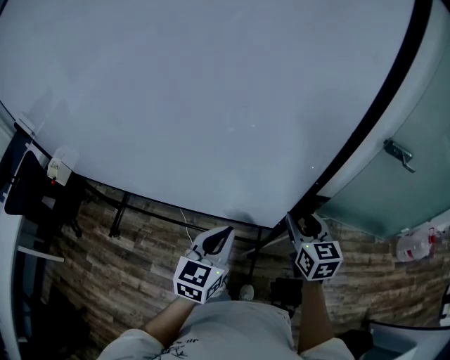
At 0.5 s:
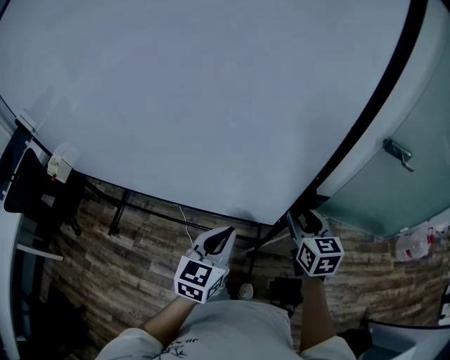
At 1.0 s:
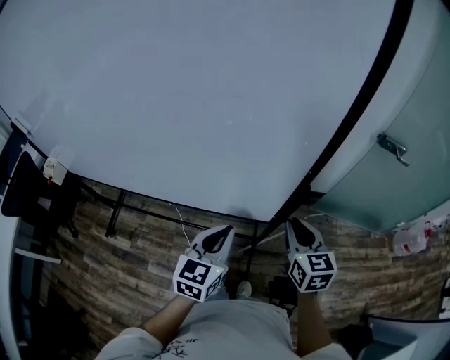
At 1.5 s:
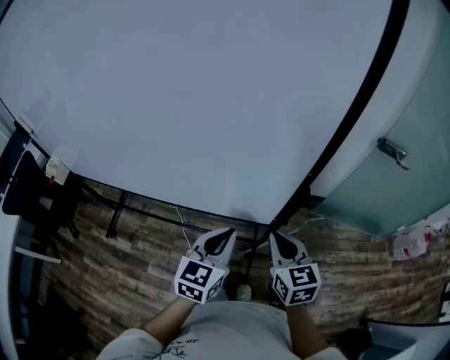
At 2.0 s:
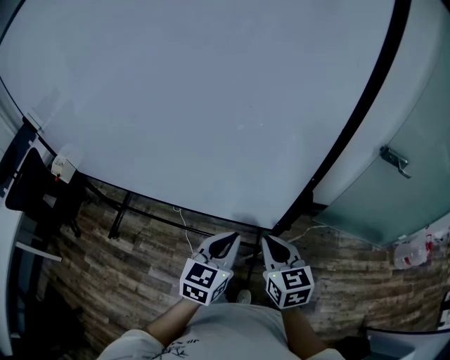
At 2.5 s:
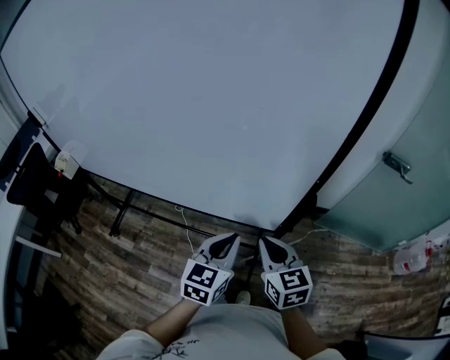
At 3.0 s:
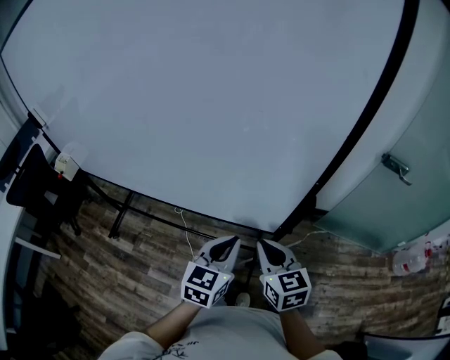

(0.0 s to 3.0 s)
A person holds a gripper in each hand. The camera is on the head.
0.0 s - 1.5 s: The right gripper shifts roughly 10 cm backward, and closes its fingers.
1.5 s - 3.0 s: The right gripper moves to the left, about 5 cm.

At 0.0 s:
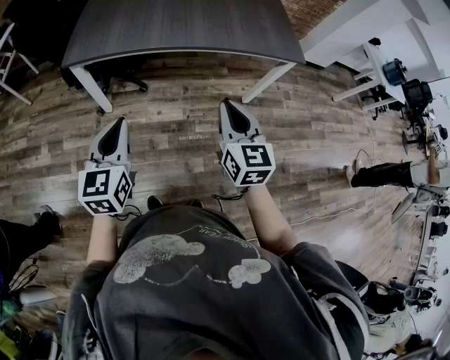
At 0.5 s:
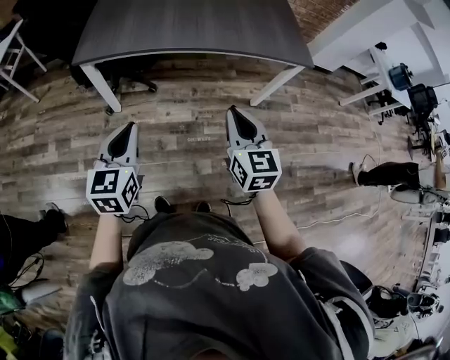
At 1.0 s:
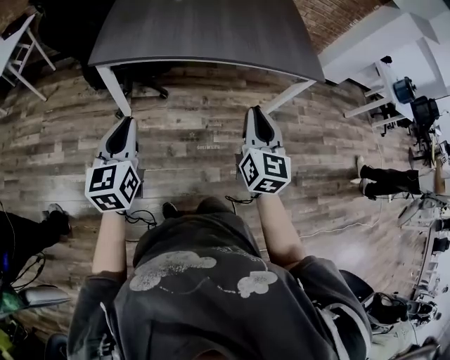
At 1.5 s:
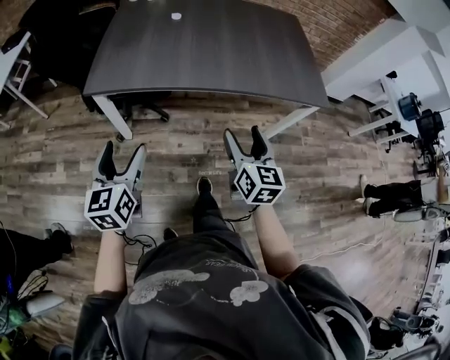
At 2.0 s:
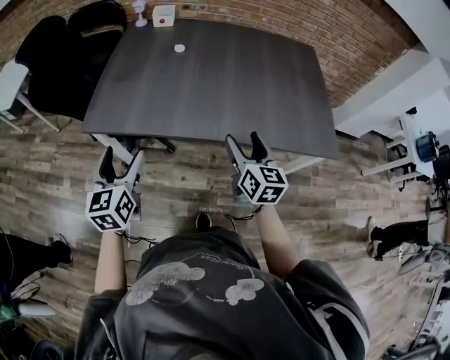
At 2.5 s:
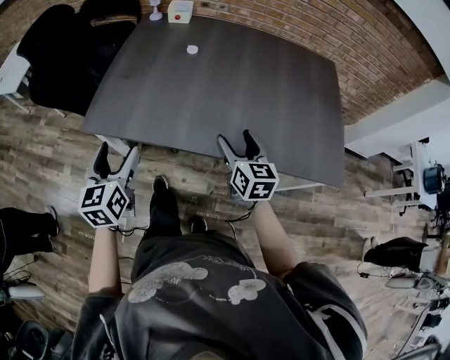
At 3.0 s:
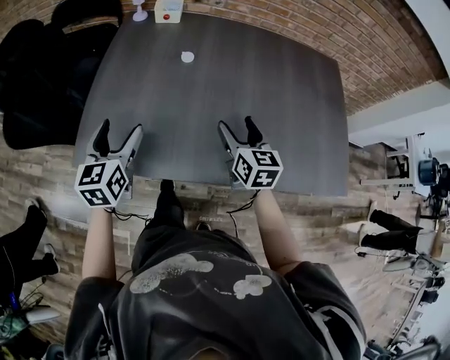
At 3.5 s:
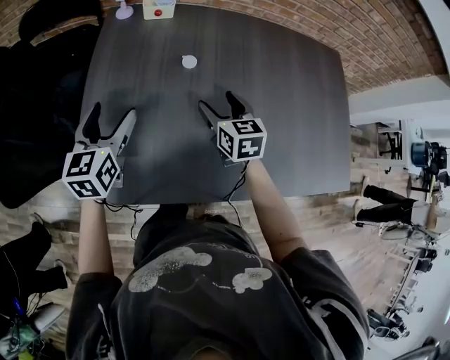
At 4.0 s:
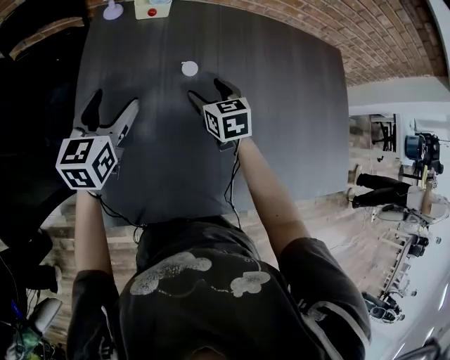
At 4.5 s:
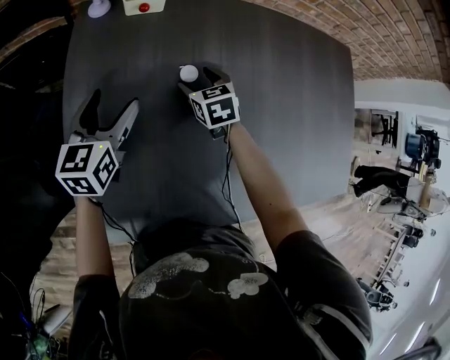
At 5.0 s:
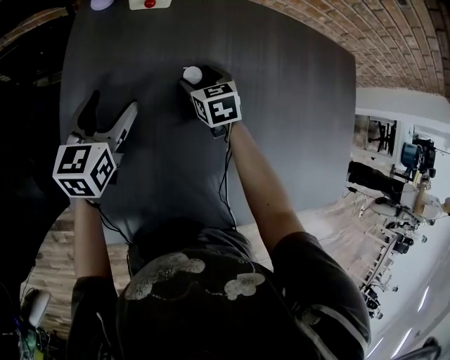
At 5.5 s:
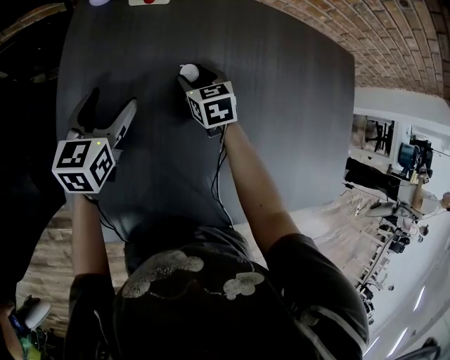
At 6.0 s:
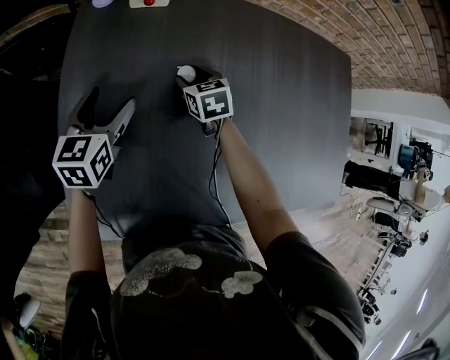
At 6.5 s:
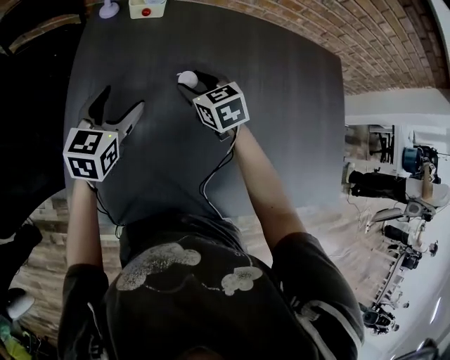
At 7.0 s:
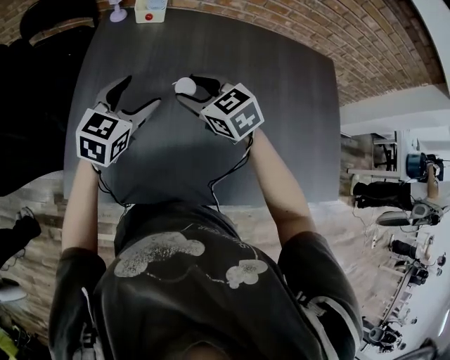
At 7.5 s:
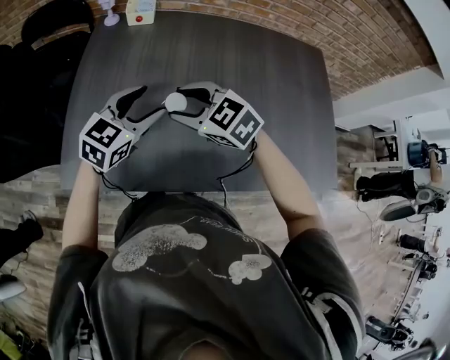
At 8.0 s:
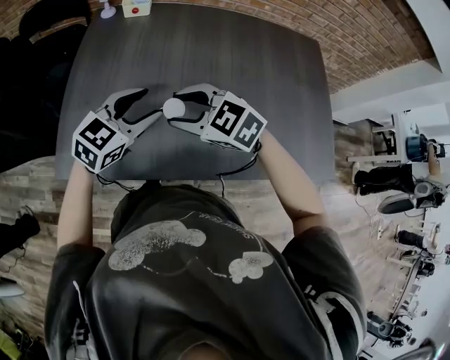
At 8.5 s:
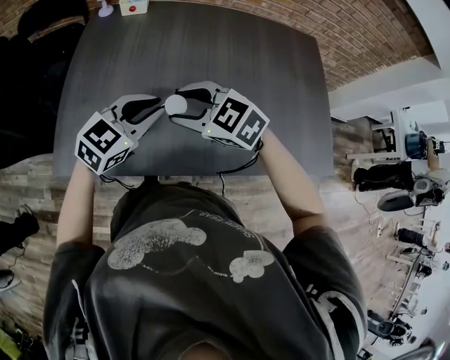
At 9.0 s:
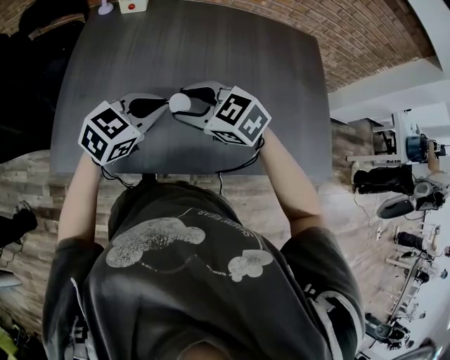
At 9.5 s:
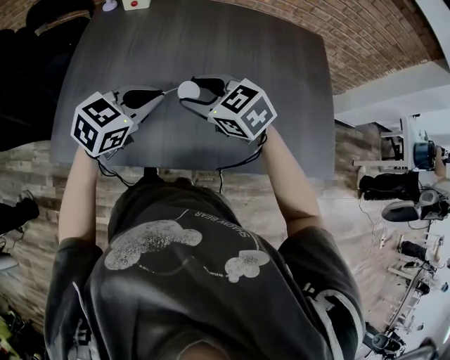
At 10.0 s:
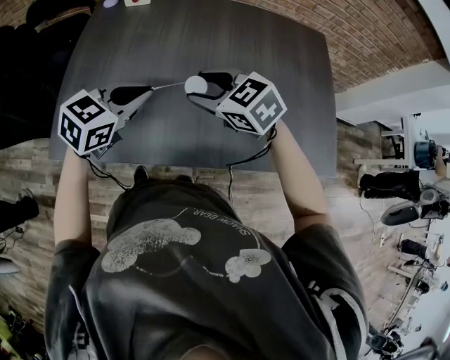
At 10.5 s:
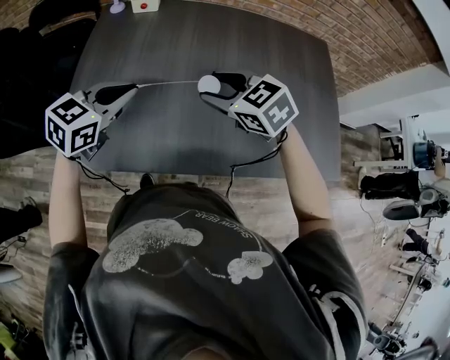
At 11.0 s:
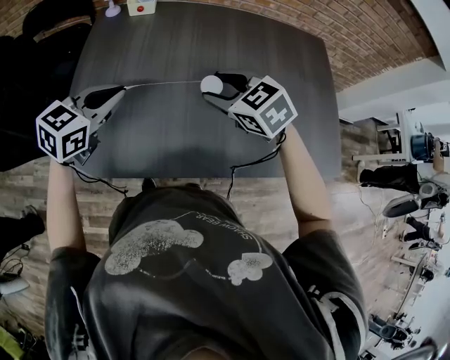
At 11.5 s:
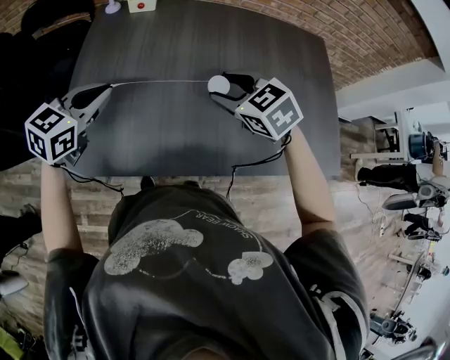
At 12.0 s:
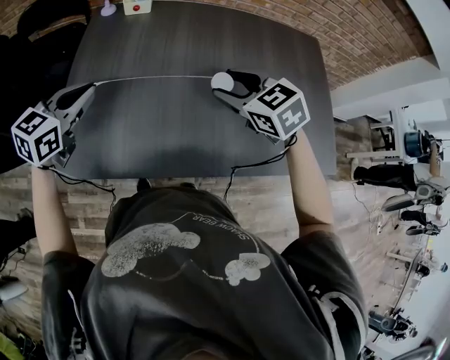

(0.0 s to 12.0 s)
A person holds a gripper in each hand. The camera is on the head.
0.0 s - 2.0 s: The grippers both shift forward by about 30 cm. The right gripper opens. Meanwhile the left gripper opens up.
2.0 s - 4.0 s: Both grippers are carried forward, about 50 cm. The right gripper turns by approximately 30 degrees, while the left gripper changes its angle by roughly 20 degrees.
4.0 s - 6.0 s: The right gripper travels forward and downward by roughly 10 cm. The left gripper goes approximately 10 cm downward and forward.
6.0 s - 8.0 s: The left gripper moves backward, to the right and upward, approximately 35 cm, turns by about 40 degrees, and closes; the right gripper travels backward and upward by roughly 40 cm, and turns by approximately 50 degrees.
8.0 s - 10.0 s: The left gripper closes up; the right gripper shifts some 10 cm to the right.
10.0 s - 12.0 s: The right gripper changes place by roughly 5 cm. Meanwhile the left gripper is displaced to the left by roughly 20 cm.

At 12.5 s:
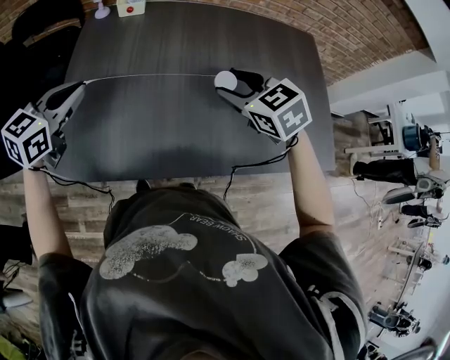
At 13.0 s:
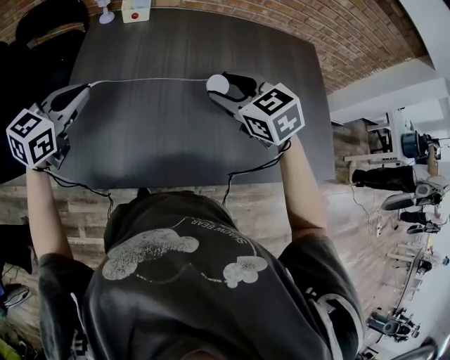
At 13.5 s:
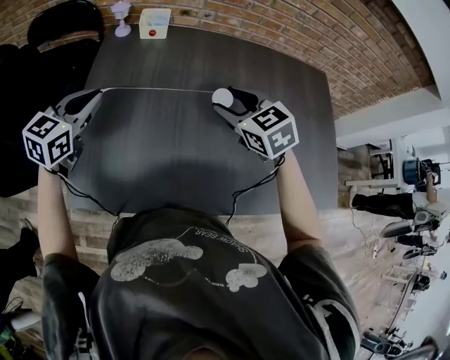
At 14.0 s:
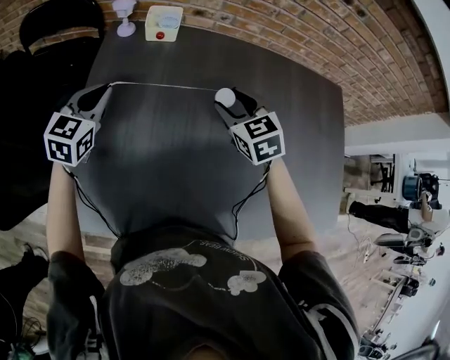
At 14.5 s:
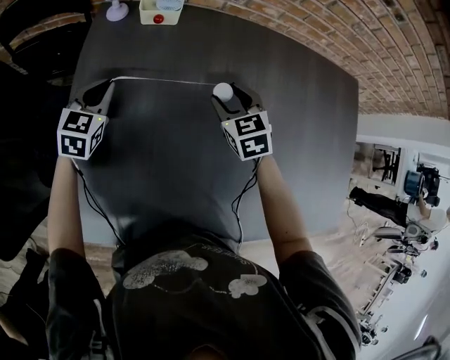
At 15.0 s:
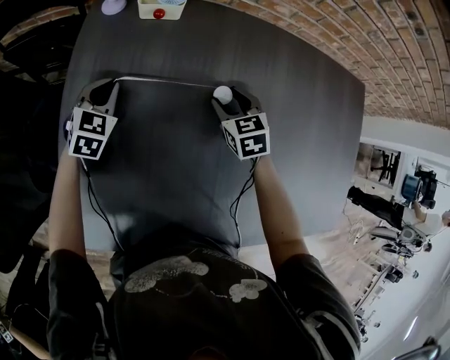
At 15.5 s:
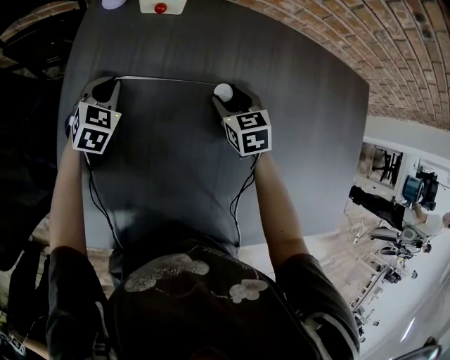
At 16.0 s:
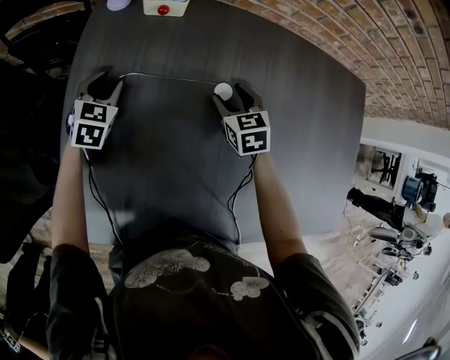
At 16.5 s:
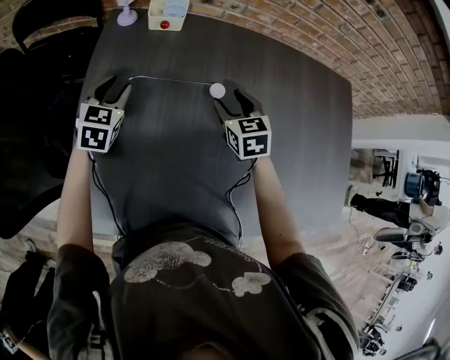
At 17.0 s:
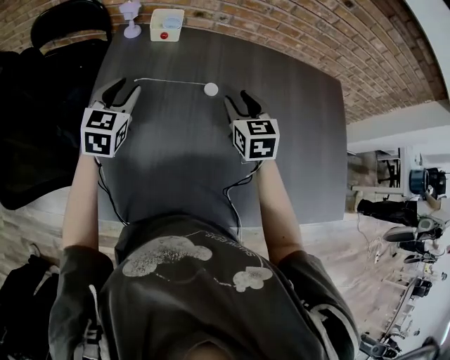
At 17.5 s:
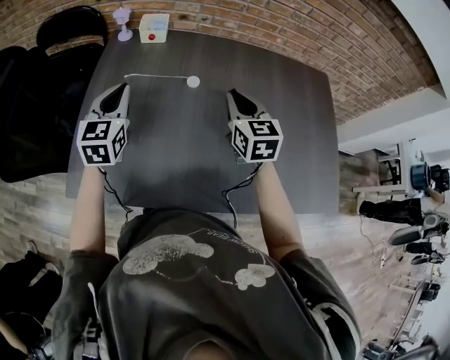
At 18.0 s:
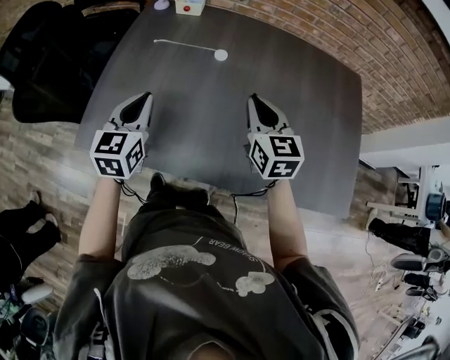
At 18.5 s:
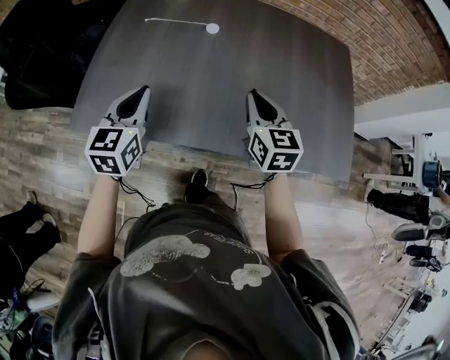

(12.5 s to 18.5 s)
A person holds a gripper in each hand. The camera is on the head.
12.5 s - 14.5 s: The grippers both shift forward and downward by some 35 cm. The left gripper turns by approximately 20 degrees.
14.5 s - 16.5 s: The right gripper goes downward and returns, about 10 cm each way, while the left gripper moves approximately 10 cm downward and comes back, and opens.
16.5 s - 18.5 s: The grippers both shift backward by about 35 cm. The left gripper swivels roughly 20 degrees, and closes. The right gripper closes up.

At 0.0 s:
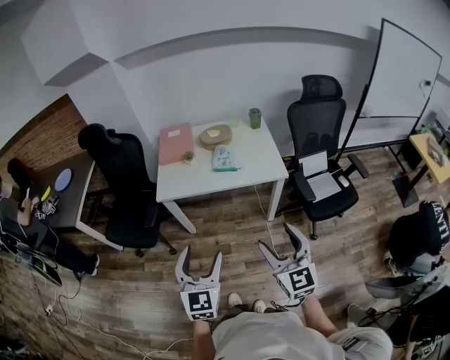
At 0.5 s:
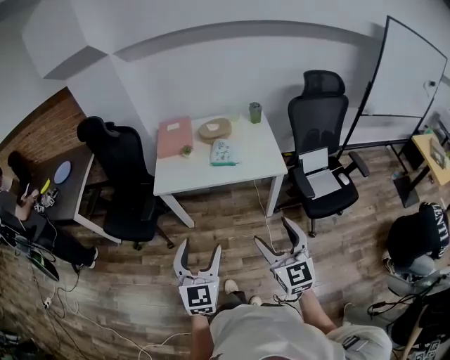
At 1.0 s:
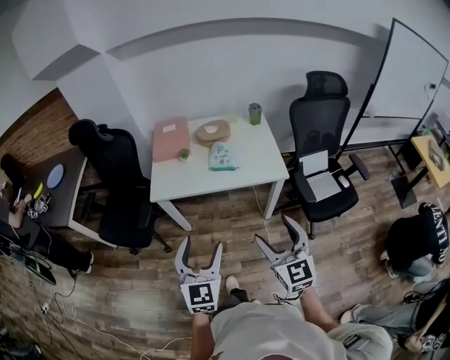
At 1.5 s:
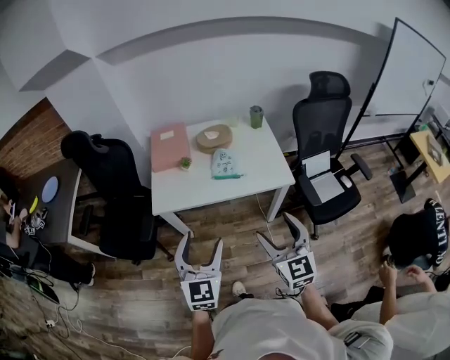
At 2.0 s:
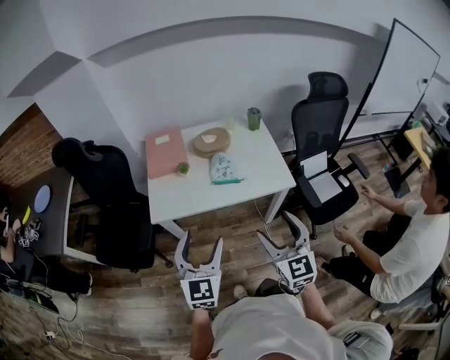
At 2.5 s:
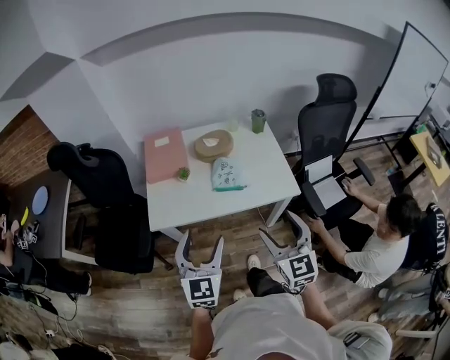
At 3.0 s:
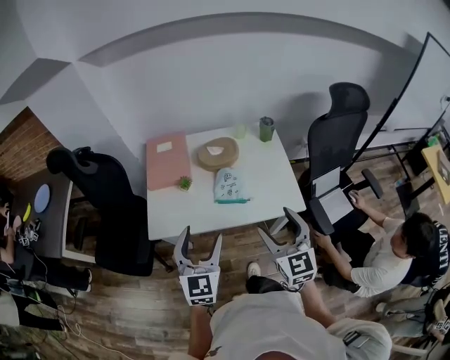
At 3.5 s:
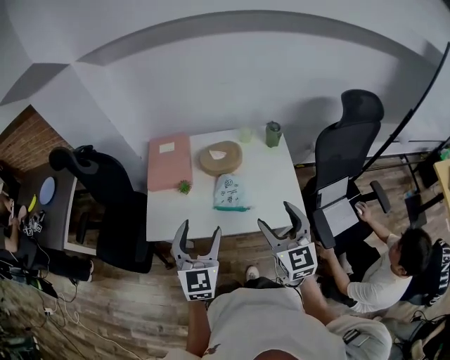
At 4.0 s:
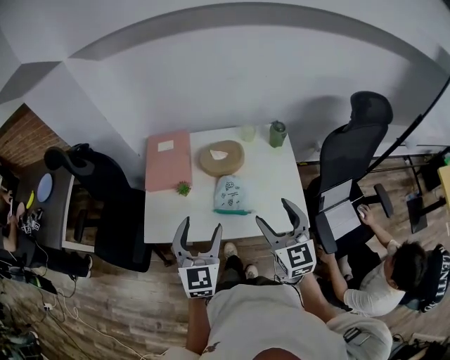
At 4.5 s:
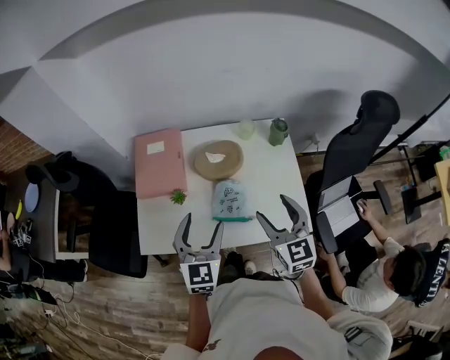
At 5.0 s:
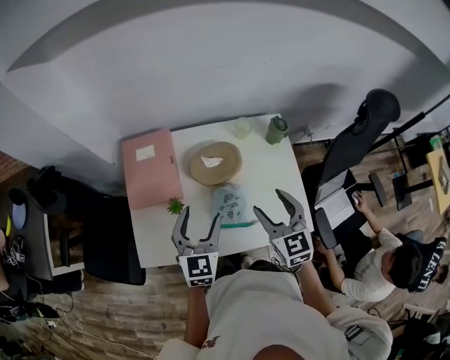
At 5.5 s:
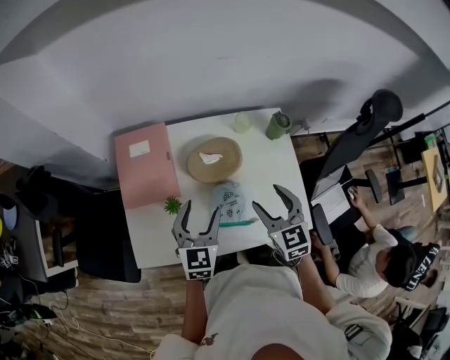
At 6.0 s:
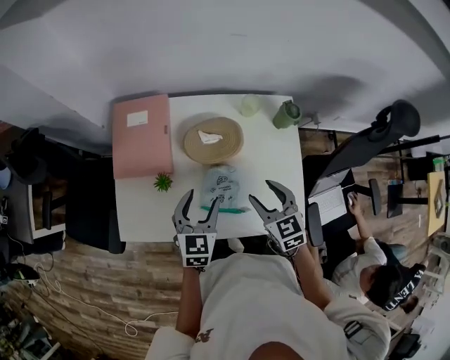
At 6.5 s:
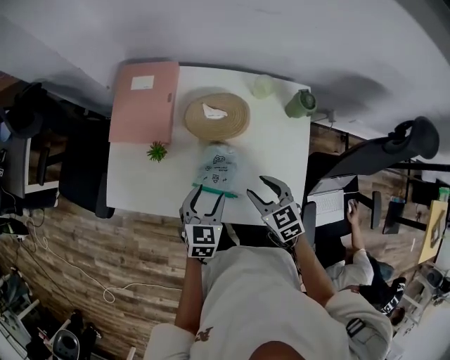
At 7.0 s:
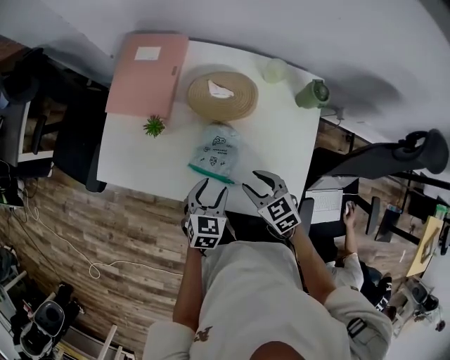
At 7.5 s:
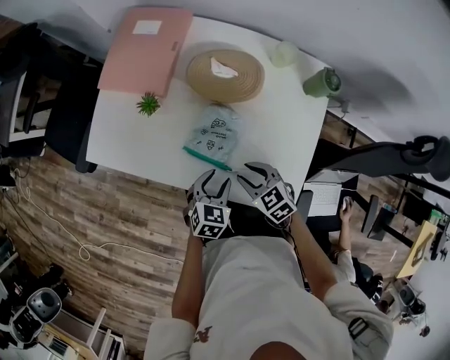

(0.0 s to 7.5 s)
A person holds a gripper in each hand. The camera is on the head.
0.0 s - 2.0 s: Both grippers travel together forward, some 20 cm.
2.0 s - 4.0 s: Both grippers move forward, about 25 cm.
4.0 s - 5.5 s: Both grippers travel together forward and downward, about 20 cm.
5.5 s - 7.5 s: Both grippers travel together downward, some 25 cm. The right gripper rotates approximately 50 degrees, and closes up; the left gripper changes its angle by about 30 degrees, and closes its fingers.
